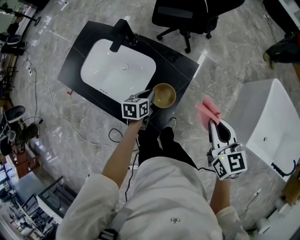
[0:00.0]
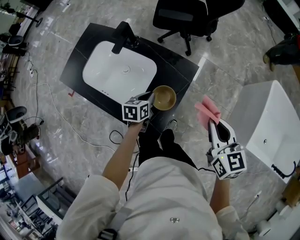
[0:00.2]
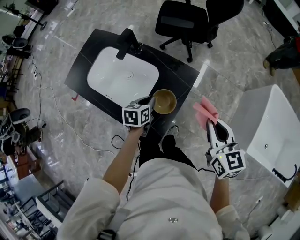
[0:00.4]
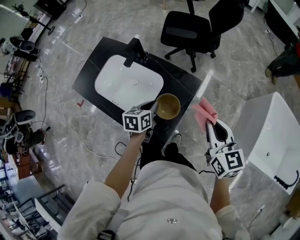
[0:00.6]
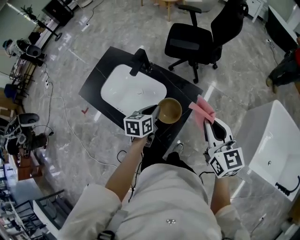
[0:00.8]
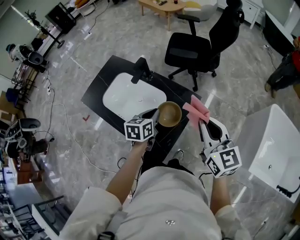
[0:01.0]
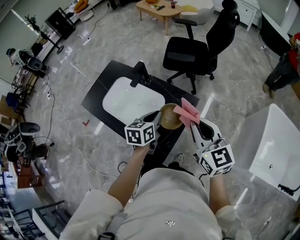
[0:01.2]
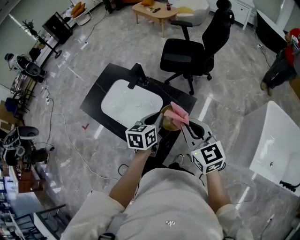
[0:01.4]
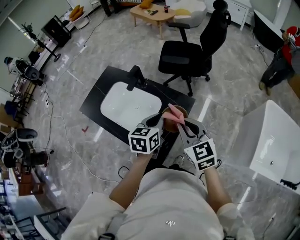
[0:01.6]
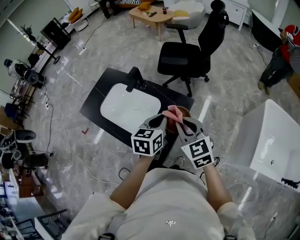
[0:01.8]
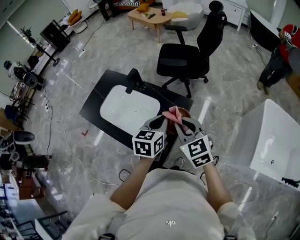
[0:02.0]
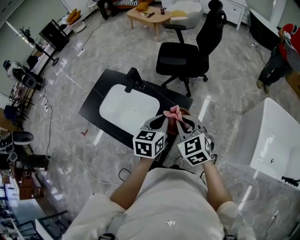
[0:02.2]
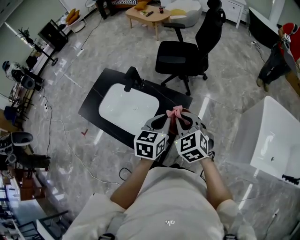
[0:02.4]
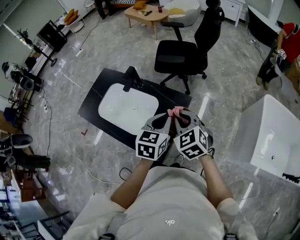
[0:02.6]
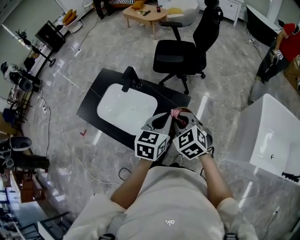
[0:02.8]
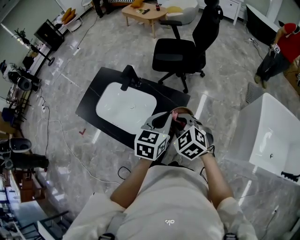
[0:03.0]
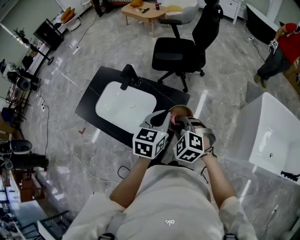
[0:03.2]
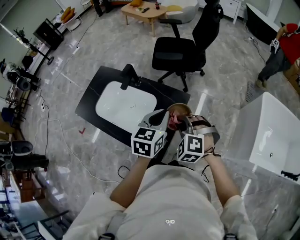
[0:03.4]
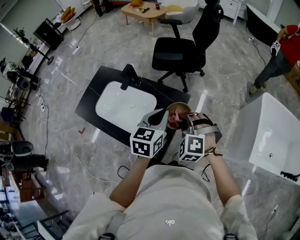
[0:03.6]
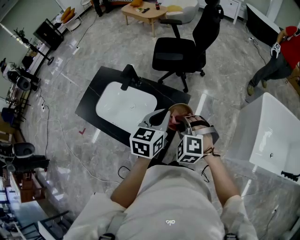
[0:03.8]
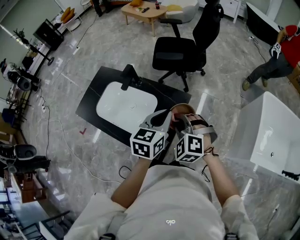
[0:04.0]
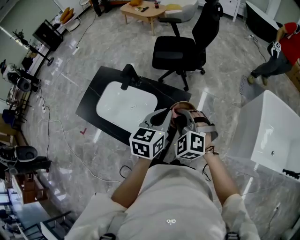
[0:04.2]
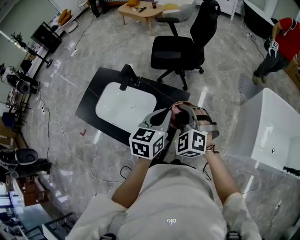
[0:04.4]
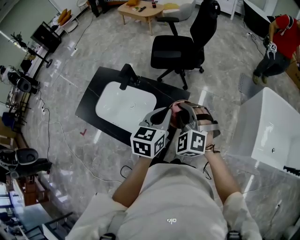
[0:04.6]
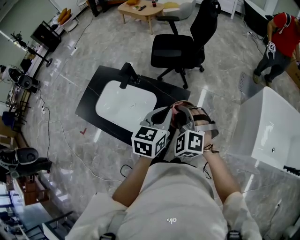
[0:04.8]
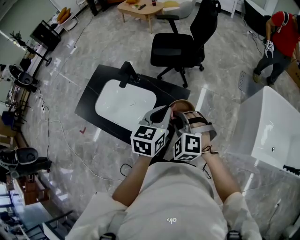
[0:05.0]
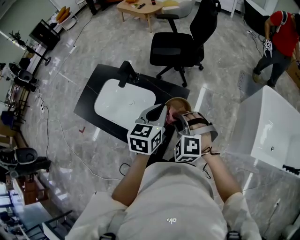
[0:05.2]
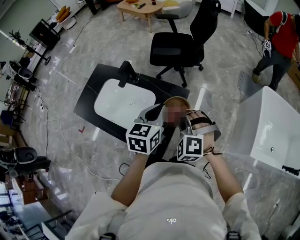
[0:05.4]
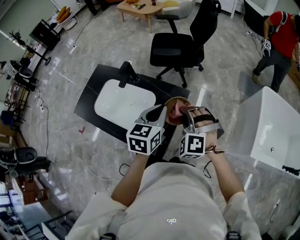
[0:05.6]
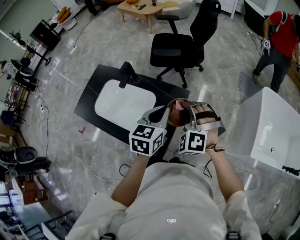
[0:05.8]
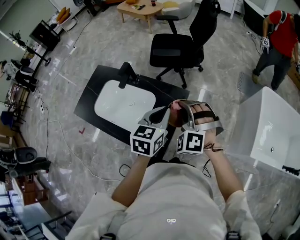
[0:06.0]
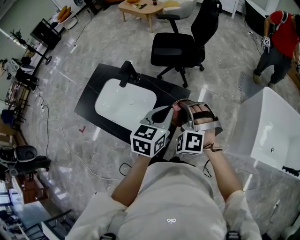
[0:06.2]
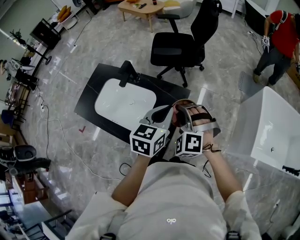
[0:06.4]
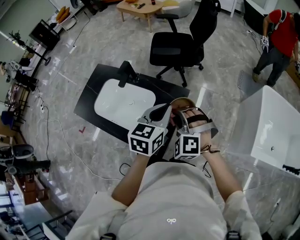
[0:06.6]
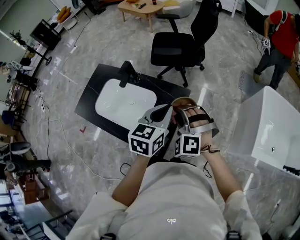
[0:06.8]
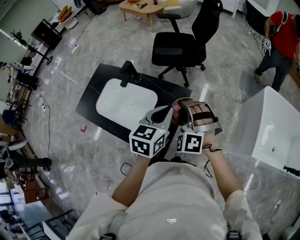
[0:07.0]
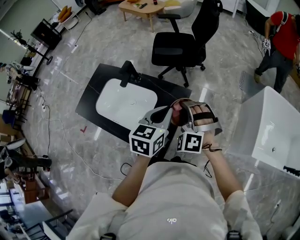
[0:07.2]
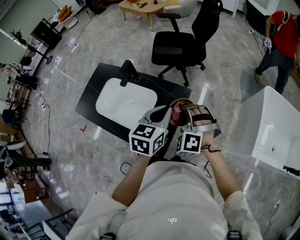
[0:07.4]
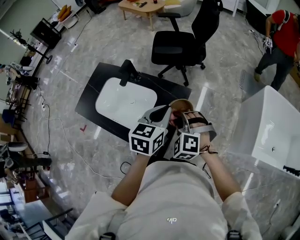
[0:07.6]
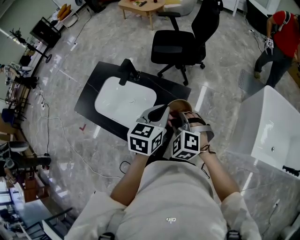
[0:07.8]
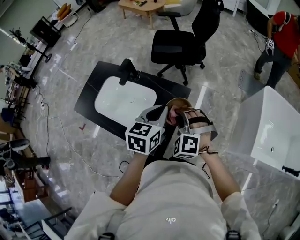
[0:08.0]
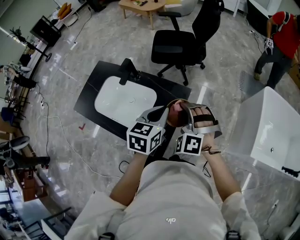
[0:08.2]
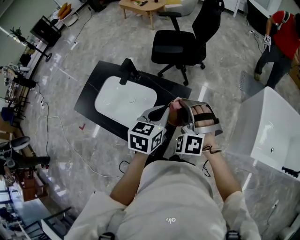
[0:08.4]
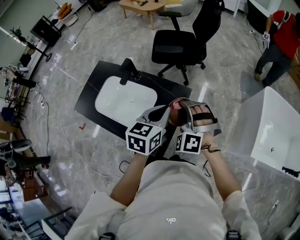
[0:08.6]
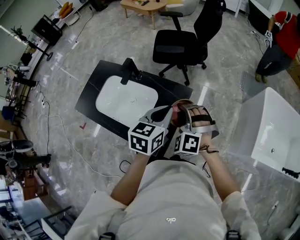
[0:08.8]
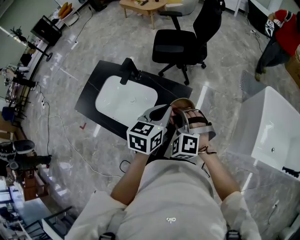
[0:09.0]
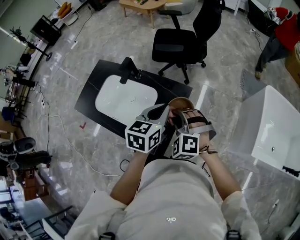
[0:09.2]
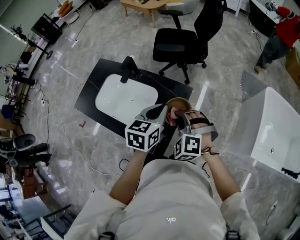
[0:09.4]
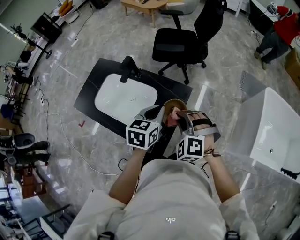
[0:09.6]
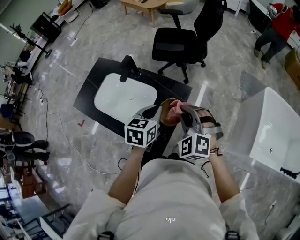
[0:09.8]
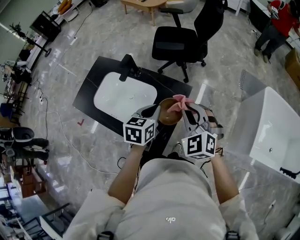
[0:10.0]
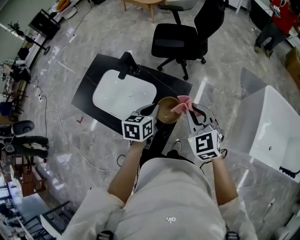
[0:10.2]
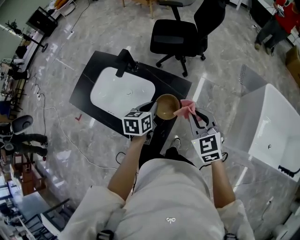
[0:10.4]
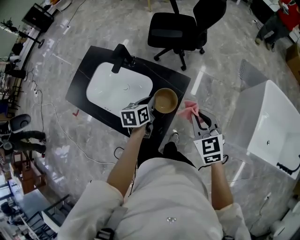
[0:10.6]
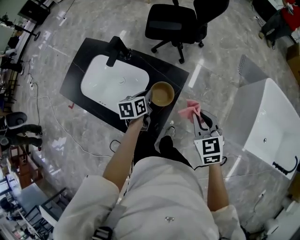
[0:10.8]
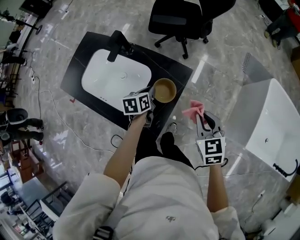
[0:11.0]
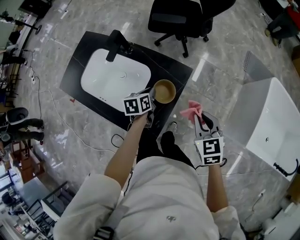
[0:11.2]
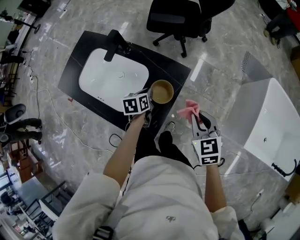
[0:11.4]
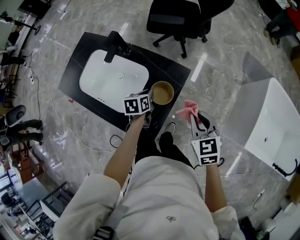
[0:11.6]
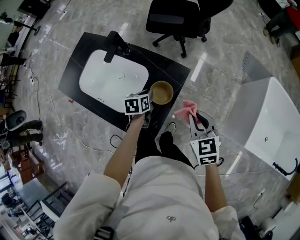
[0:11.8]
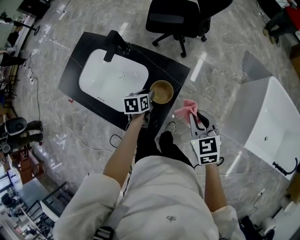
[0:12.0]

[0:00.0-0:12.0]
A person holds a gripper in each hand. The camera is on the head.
0:00.0 to 0:01.6: The right gripper travels to the left and upward by some 15 cm, and turns by some 20 degrees, while the left gripper moves upward, about 25 cm, and turns by approximately 20 degrees.
0:01.6 to 0:03.0: The right gripper travels downward by about 5 cm, and swivels some 30 degrees, while the left gripper shifts approximately 5 cm to the right.
0:03.0 to 0:04.4: The right gripper turns by roughly 30 degrees.
0:06.0 to 0:07.6: The right gripper shifts approximately 5 cm downward.
0:09.0 to 0:10.4: The right gripper is displaced to the right by approximately 10 cm, and twists about 50 degrees clockwise, seen from behind. The left gripper travels downward and to the left by approximately 15 cm.
0:10.4 to 0:12.0: The right gripper travels downward by approximately 5 cm. Meanwhile the left gripper travels downward by roughly 15 cm, and opens its fingers.

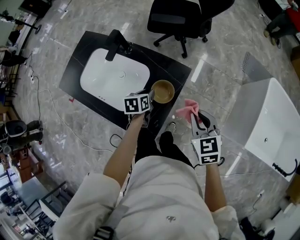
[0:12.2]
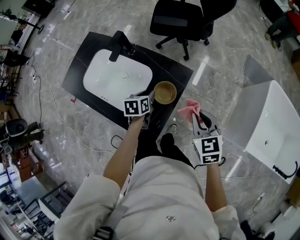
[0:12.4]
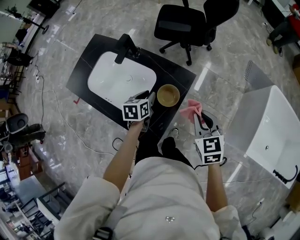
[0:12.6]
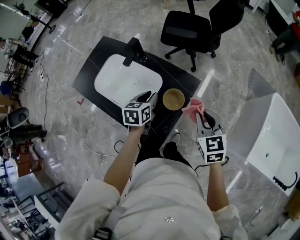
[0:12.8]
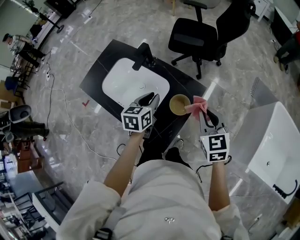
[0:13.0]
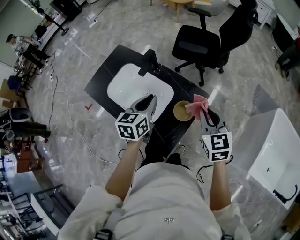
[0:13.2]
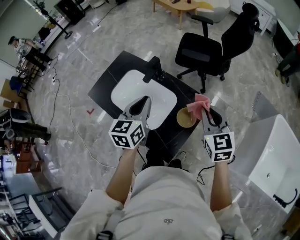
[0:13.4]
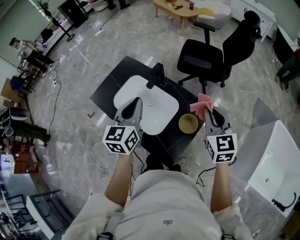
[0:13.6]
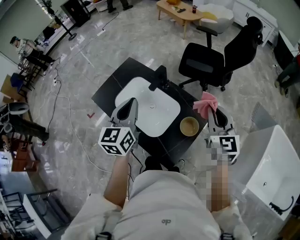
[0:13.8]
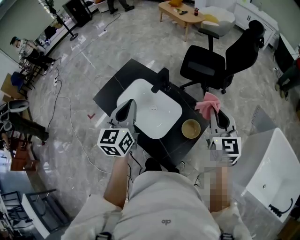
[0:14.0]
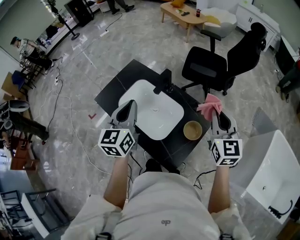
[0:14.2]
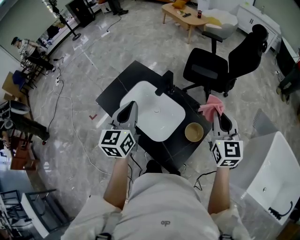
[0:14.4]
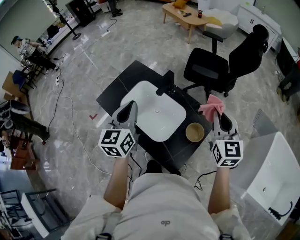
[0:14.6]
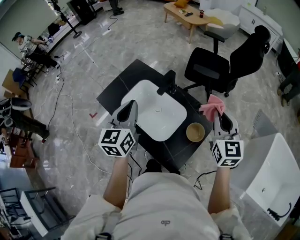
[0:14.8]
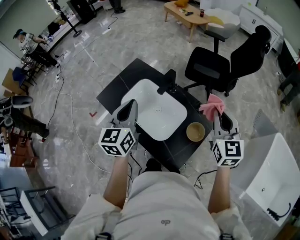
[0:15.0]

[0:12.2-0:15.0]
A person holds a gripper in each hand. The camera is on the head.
0:12.2 to 0:13.6: The left gripper travels upward and to the left by about 35 cm, tips its fingers upward by roughly 40 degrees, and closes. Meanwhile the right gripper moves upward, forward and to the left, roughly 20 cm, and rotates approximately 20 degrees.
0:13.6 to 0:15.0: The left gripper travels to the left by about 10 cm; the right gripper changes place by some 5 cm.

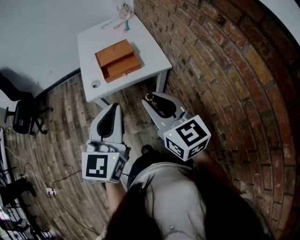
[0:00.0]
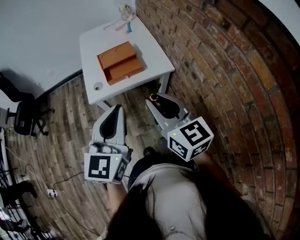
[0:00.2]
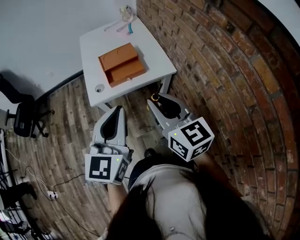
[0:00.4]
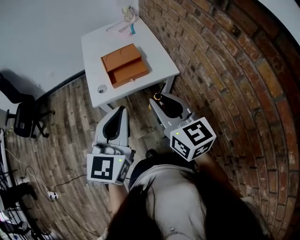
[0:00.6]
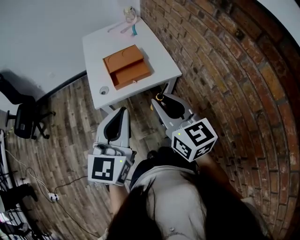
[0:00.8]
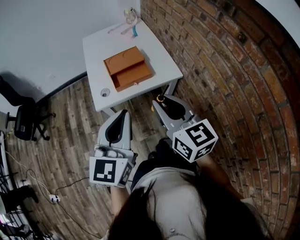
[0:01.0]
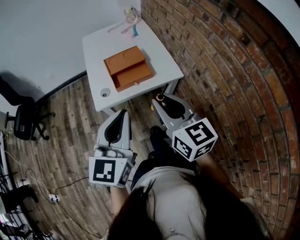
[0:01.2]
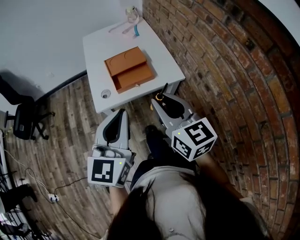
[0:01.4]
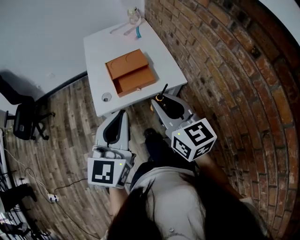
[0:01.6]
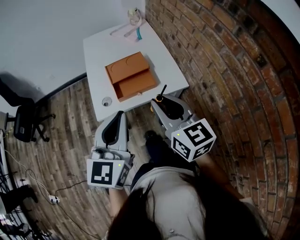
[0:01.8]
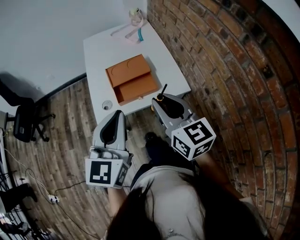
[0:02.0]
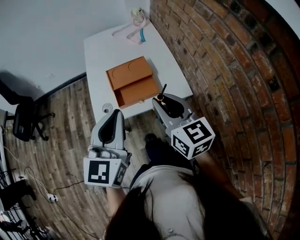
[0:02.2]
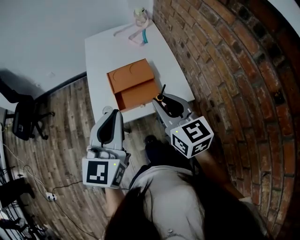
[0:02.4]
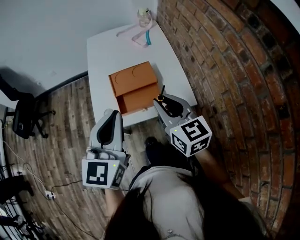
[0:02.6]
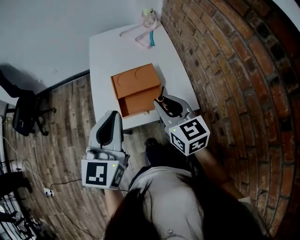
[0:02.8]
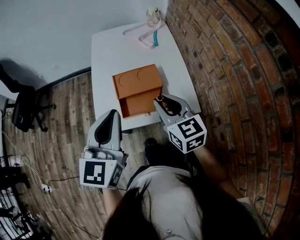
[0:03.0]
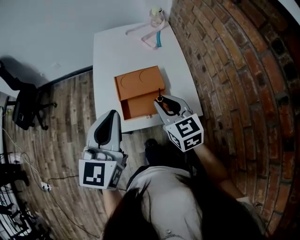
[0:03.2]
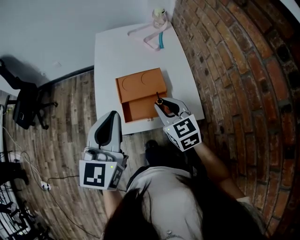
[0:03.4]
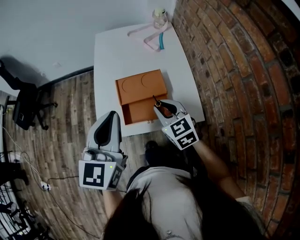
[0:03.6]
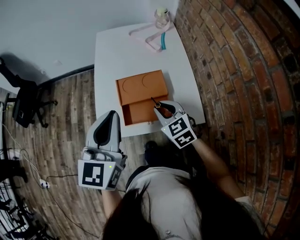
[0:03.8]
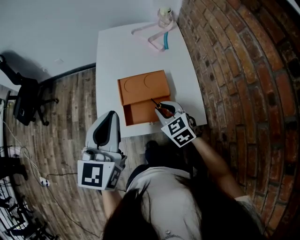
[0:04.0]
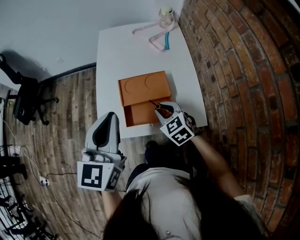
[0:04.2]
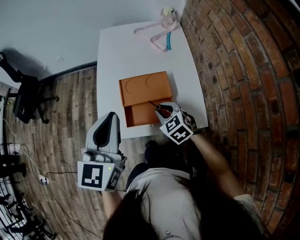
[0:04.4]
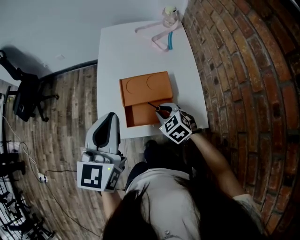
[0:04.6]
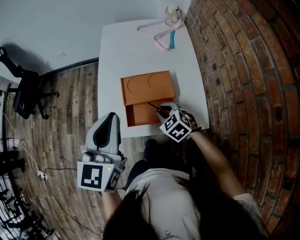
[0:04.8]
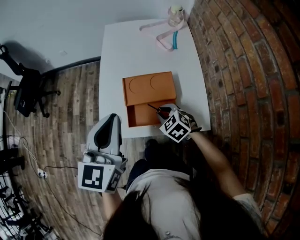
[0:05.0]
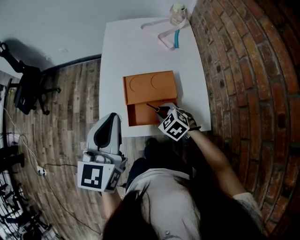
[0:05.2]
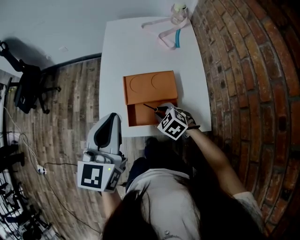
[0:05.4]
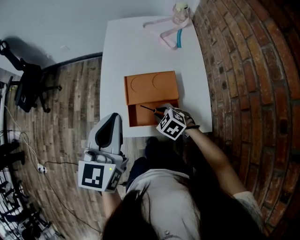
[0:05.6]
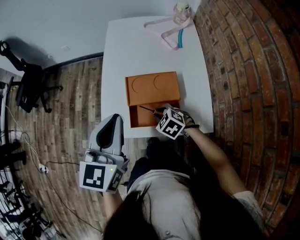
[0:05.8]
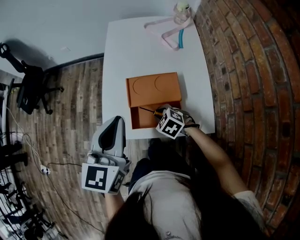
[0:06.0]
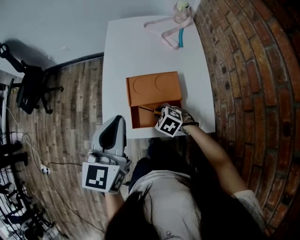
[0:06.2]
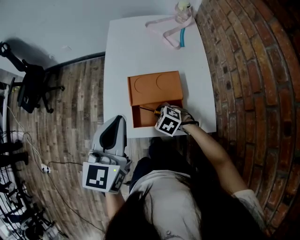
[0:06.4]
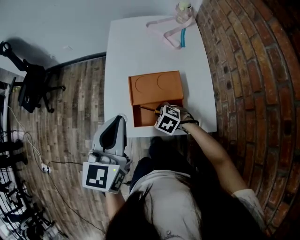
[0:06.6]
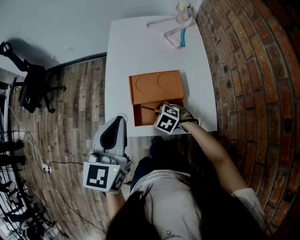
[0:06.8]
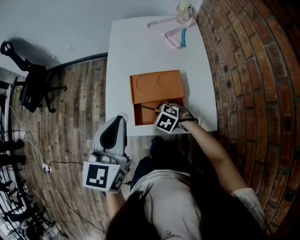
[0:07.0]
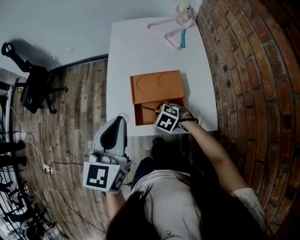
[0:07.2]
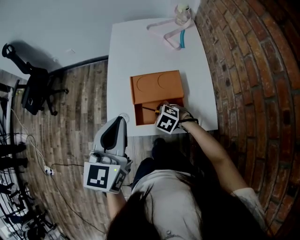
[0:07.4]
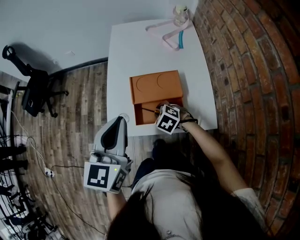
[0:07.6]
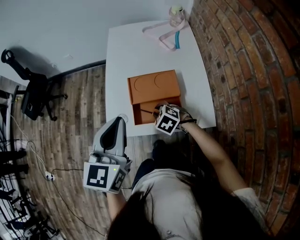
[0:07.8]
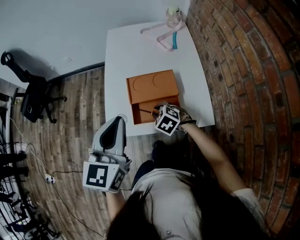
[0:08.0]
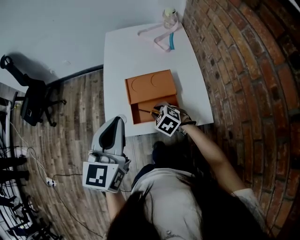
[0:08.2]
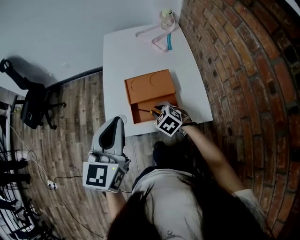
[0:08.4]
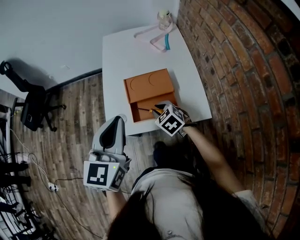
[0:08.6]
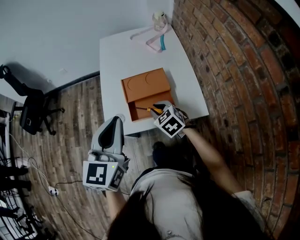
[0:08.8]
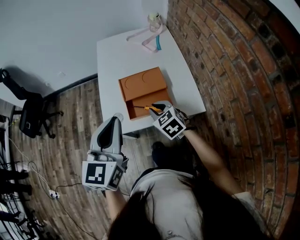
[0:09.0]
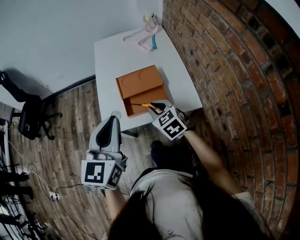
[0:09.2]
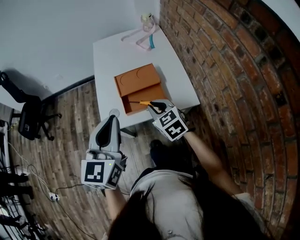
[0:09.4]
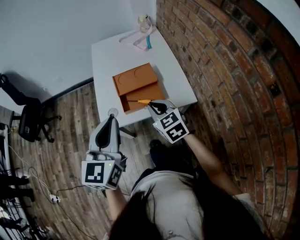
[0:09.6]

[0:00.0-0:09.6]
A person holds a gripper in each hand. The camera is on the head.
0:00.0 to 0:01.6: The right gripper travels forward by approximately 10 cm. Meanwhile the left gripper shifts about 10 cm forward and to the left.
0:01.6 to 0:03.2: The right gripper moves forward and downward, about 25 cm; the left gripper travels forward by some 20 cm.
0:03.2 to 0:04.8: The left gripper moves forward, some 5 cm; the right gripper shifts approximately 15 cm downward, and swivels some 40 degrees.
0:04.8 to 0:06.4: The right gripper heads downward, covering about 5 cm.
0:06.4 to 0:08.0: The grippers move only a little.
0:08.0 to 0:09.6: The right gripper heads upward and backward, covering roughly 20 cm, and turns by about 40 degrees. The left gripper is displaced backward by about 10 cm.
